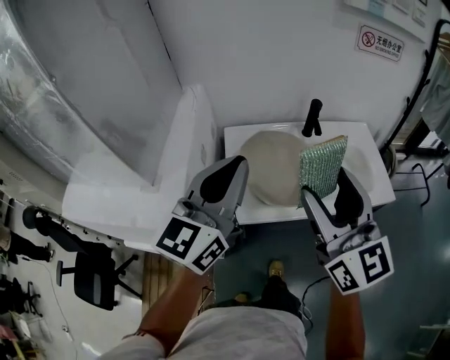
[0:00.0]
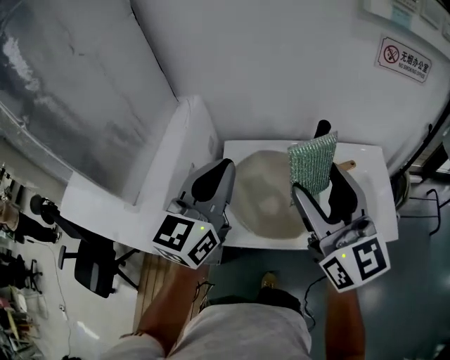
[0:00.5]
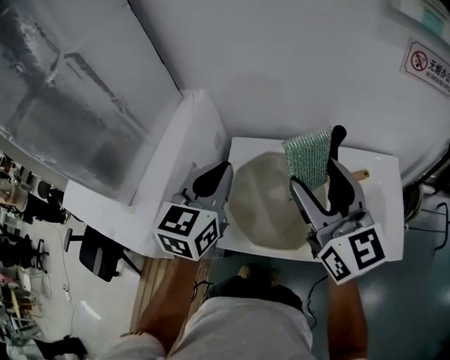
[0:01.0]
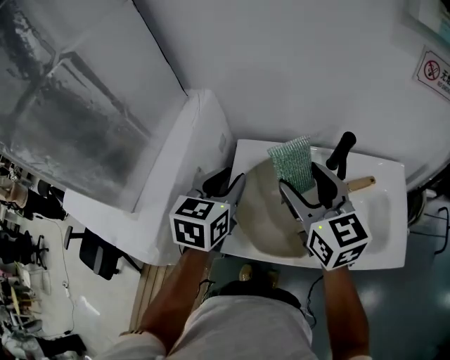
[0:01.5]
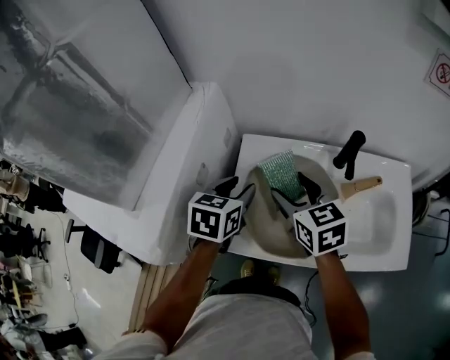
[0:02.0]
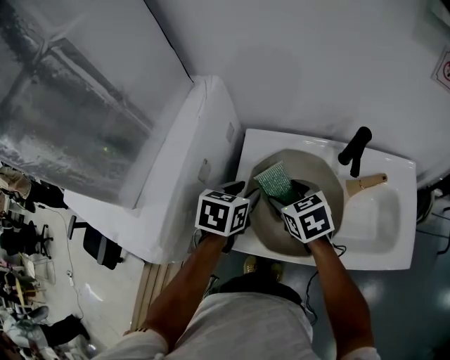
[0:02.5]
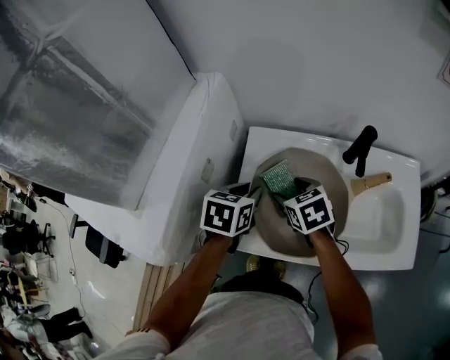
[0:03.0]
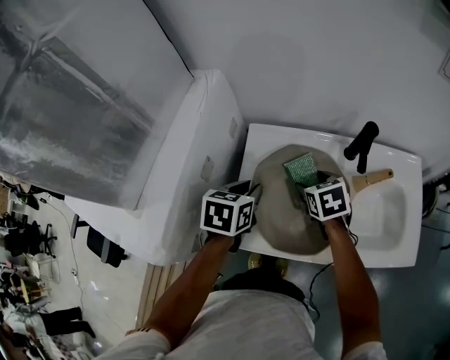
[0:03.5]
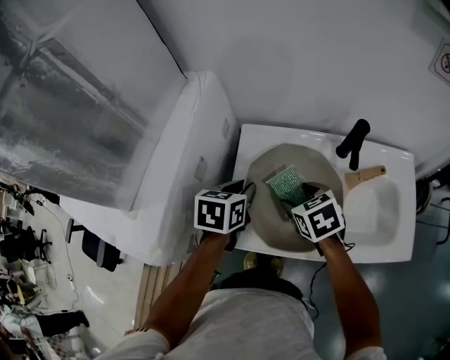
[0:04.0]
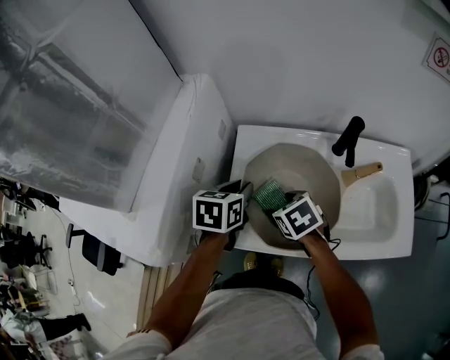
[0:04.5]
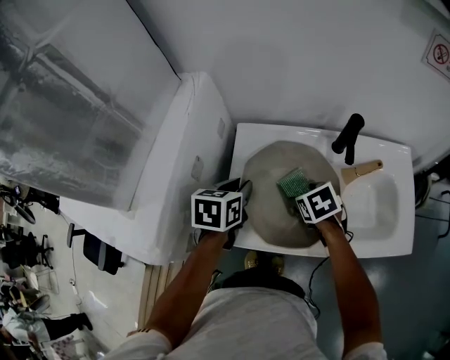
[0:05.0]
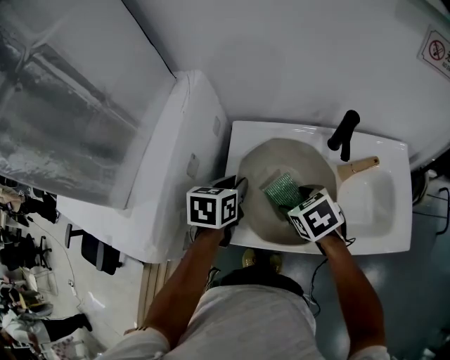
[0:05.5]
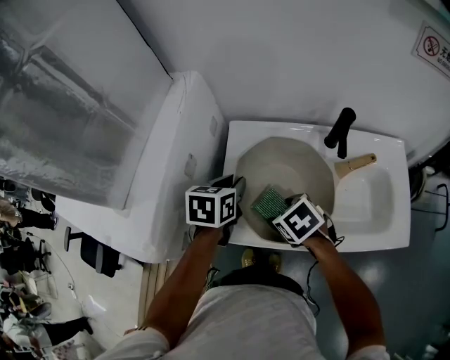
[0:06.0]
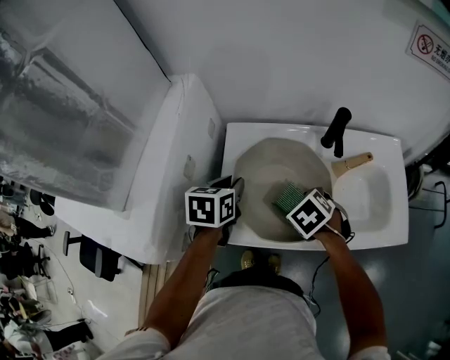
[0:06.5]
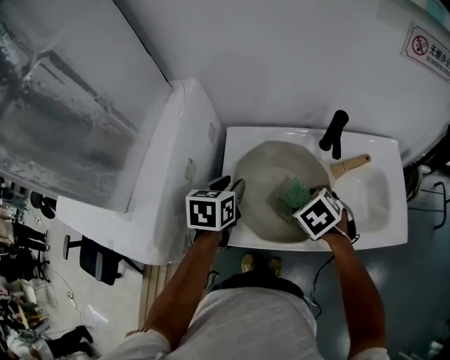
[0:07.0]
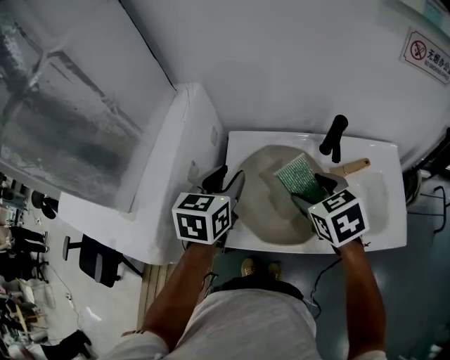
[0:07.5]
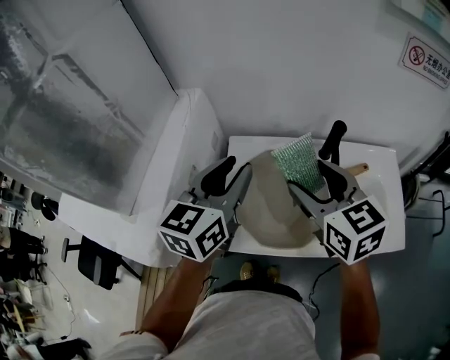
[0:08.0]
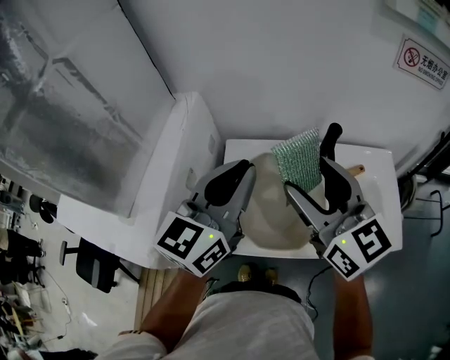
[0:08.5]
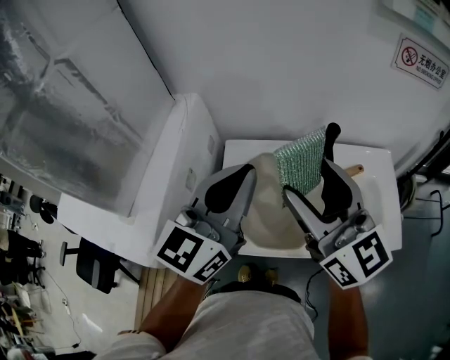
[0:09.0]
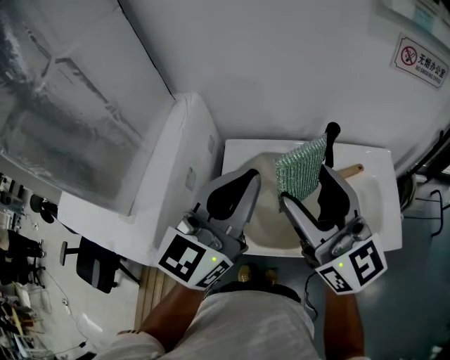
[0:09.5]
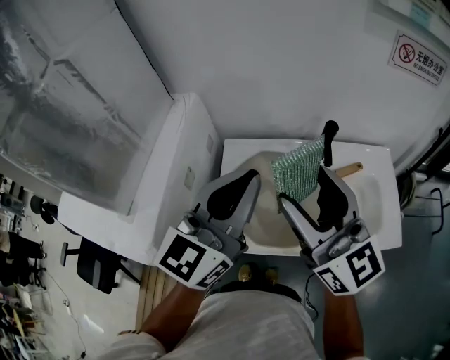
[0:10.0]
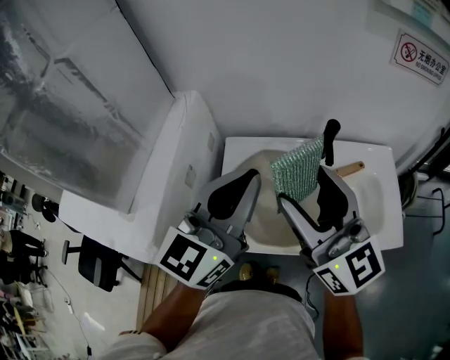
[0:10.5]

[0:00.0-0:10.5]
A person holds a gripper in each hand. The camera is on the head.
0:00.0 to 0:02.0: The right gripper shifts roughly 30 cm forward and downward, and points its fingers roughly 40 degrees further downward; the left gripper heads downward and forward, covering approximately 30 cm, points its fingers approximately 50 degrees further downward, and opens up.
0:02.0 to 0:04.0: The left gripper travels downward by roughly 5 cm, and closes up. The right gripper moves downward, about 10 cm, and rotates about 30 degrees.
0:04.0 to 0:06.5: The right gripper goes left and right, some 10 cm each way, reversing 2 times, and changes its angle by approximately 20 degrees.
0:06.5 to 0:08.5: Both grippers travel together upward, roughly 25 cm. The left gripper angles its fingers upward, by approximately 40 degrees; the right gripper angles its fingers upward, by roughly 70 degrees.
0:08.5 to 0:10.5: There are only small adjustments of the grippers.

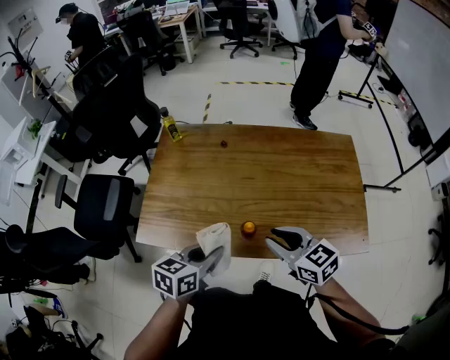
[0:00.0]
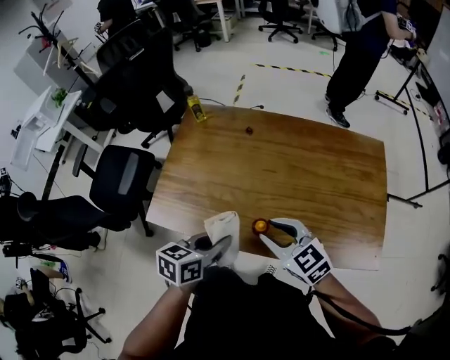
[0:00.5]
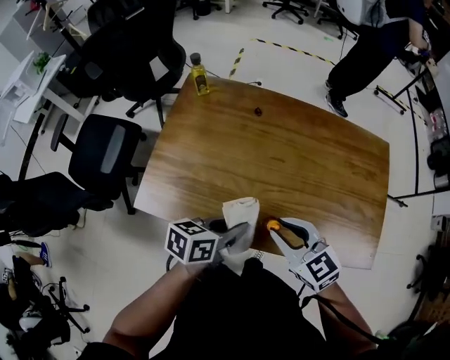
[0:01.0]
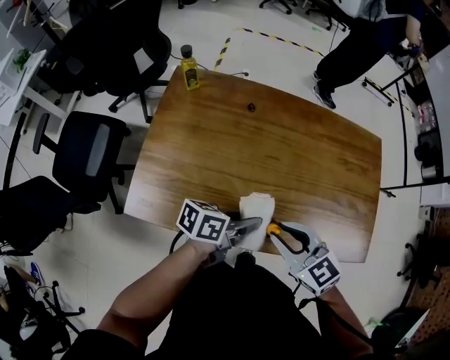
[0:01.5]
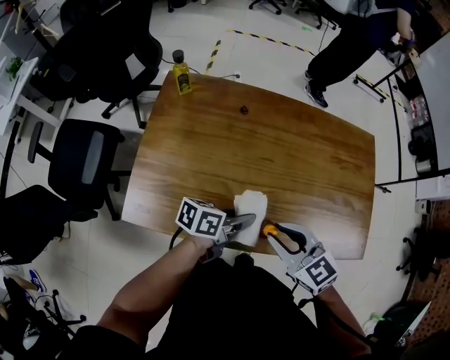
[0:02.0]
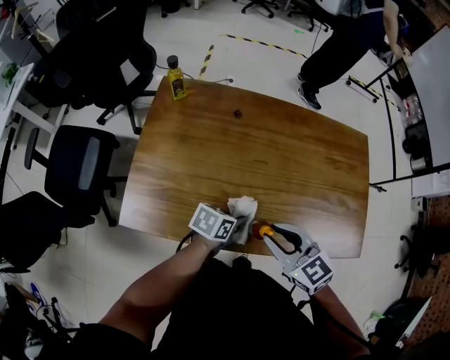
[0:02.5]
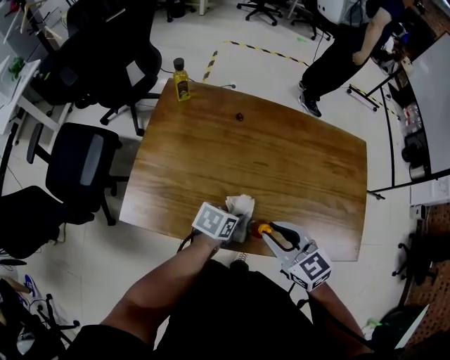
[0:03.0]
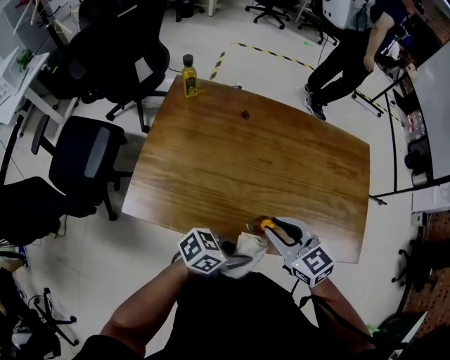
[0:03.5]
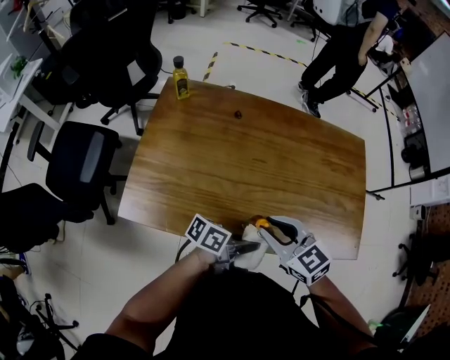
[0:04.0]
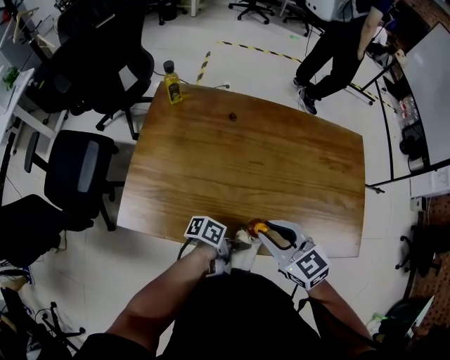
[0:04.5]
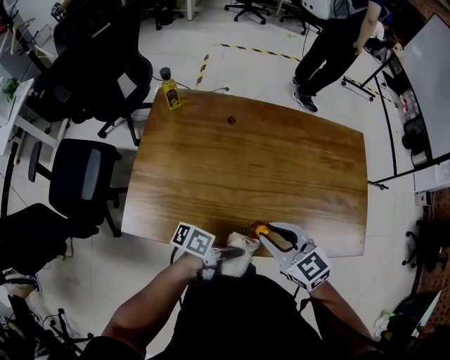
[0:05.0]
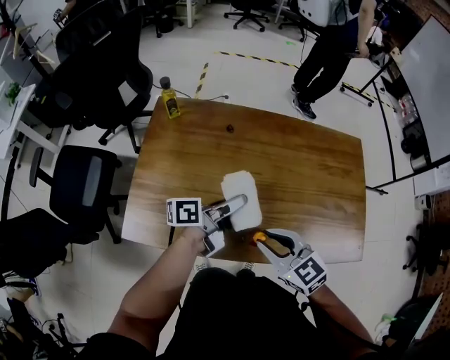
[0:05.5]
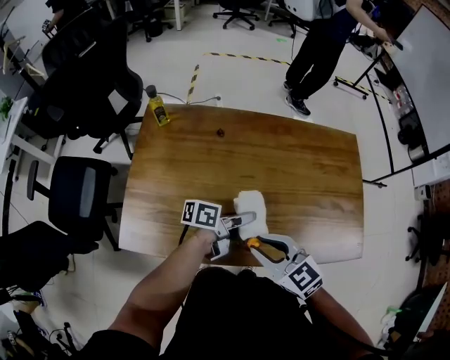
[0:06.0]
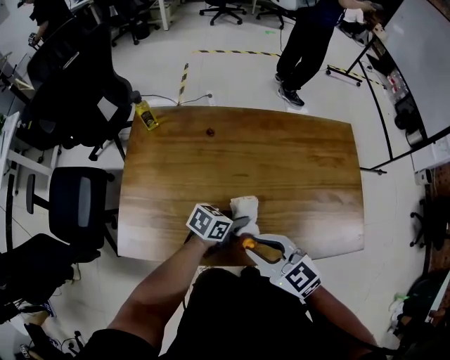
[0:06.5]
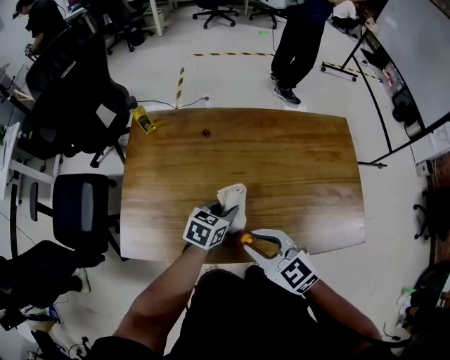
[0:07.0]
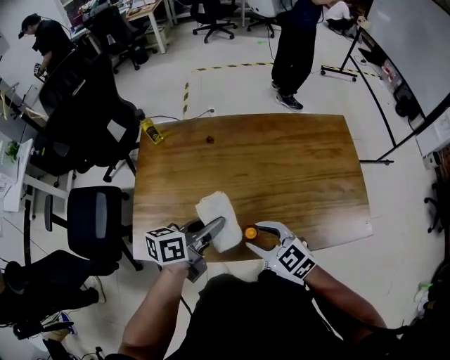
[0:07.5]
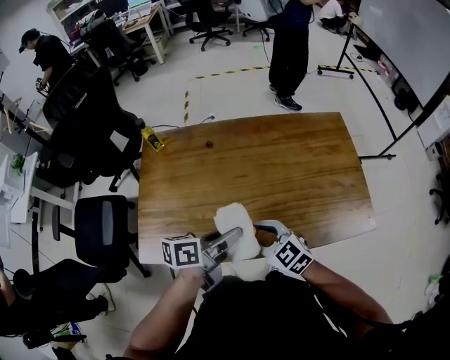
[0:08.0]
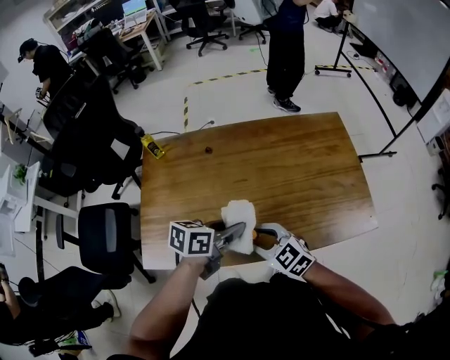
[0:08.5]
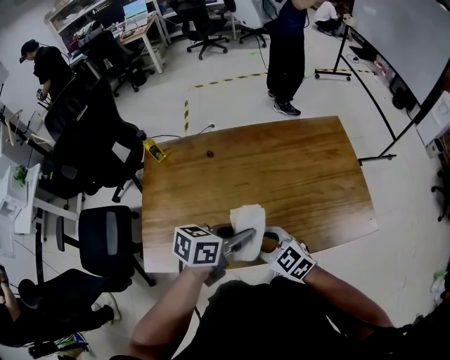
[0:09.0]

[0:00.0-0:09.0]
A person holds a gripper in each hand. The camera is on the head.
0:00.0 to 0:02.0: The right gripper ends up some 5 cm from where it was, while the left gripper moves forward, downward and to the right, roughly 15 cm, and changes its angle by approximately 30 degrees.
0:02.0 to 0:04.5: The left gripper moves up and down over about 10 cm, changing direction 2 times, and changes its angle by some 30 degrees.
0:04.5 to 0:07.0: The left gripper moves approximately 15 cm upward and comes back, and rolls clockwise, seen from behind, by about 60 degrees.
0:07.0 to 0:09.0: The left gripper shifts approximately 15 cm upward and backward, and swivels approximately 20 degrees.

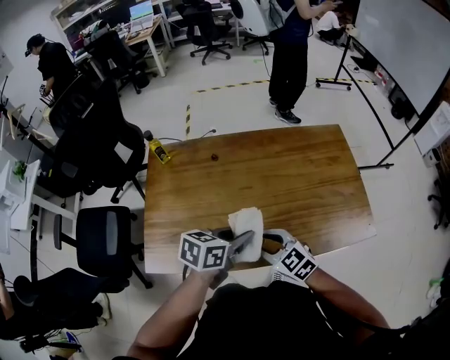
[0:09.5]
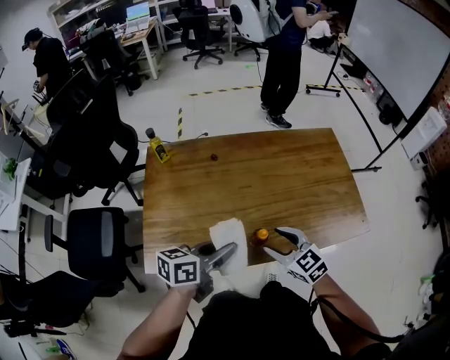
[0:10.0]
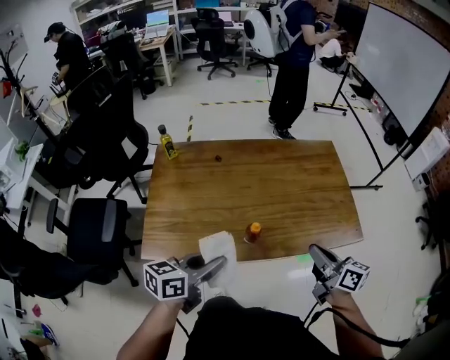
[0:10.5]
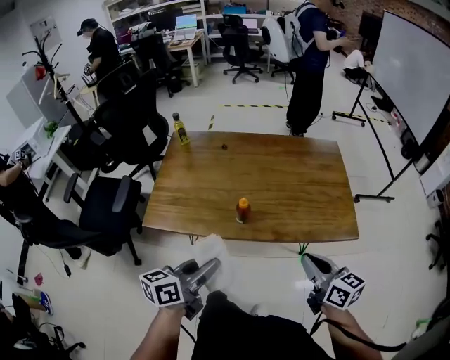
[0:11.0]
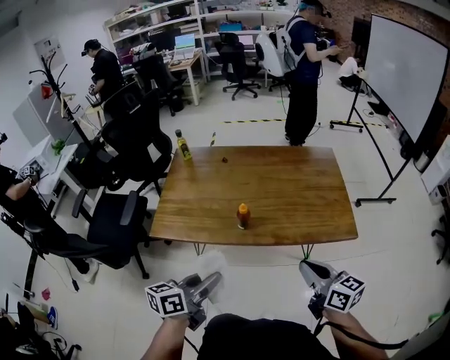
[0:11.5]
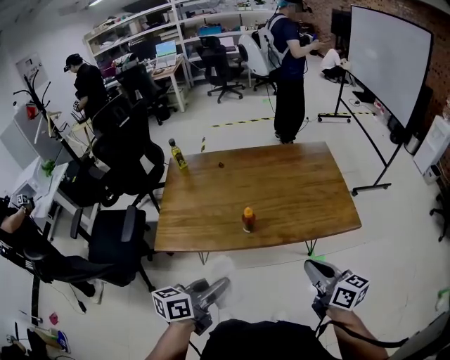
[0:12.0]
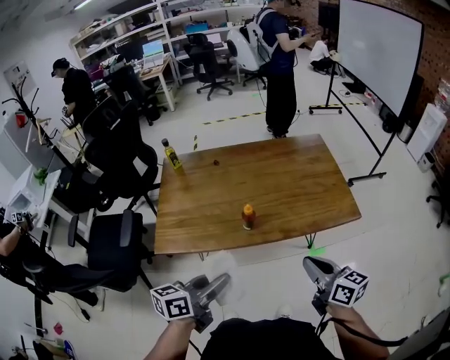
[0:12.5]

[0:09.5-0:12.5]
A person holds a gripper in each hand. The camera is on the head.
0:09.5 to 0:11.0: The right gripper shifts roughly 30 cm to the right, backward and upward, rotates roughly 40 degrees, and closes its fingers, while the left gripper travels backward by roughly 25 cm, and swivels roughly 30 degrees.
0:11.0 to 0:12.5: The right gripper moves some 5 cm.

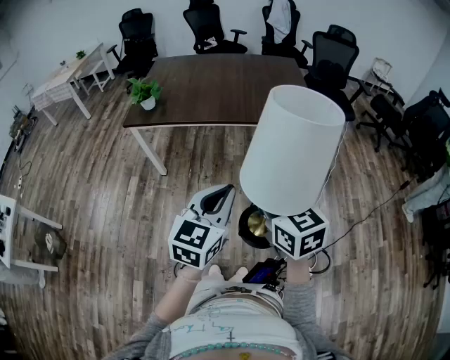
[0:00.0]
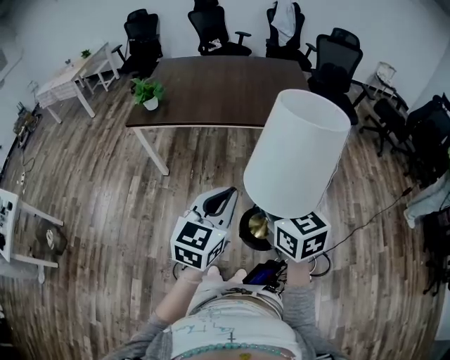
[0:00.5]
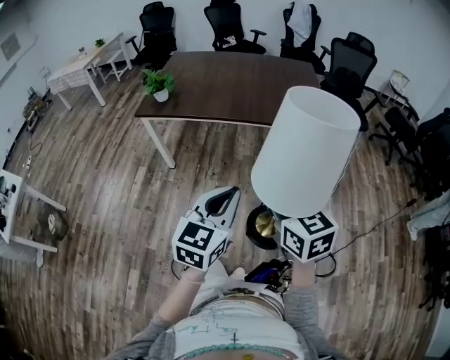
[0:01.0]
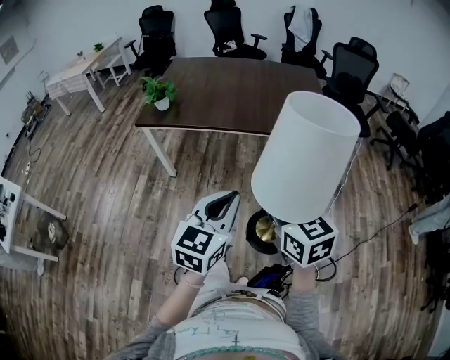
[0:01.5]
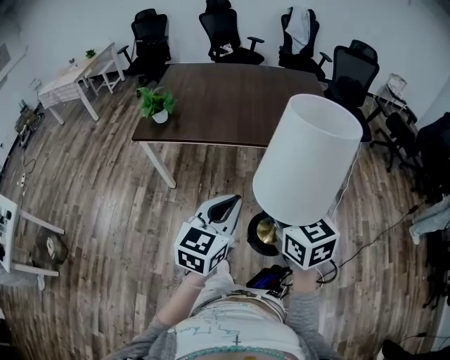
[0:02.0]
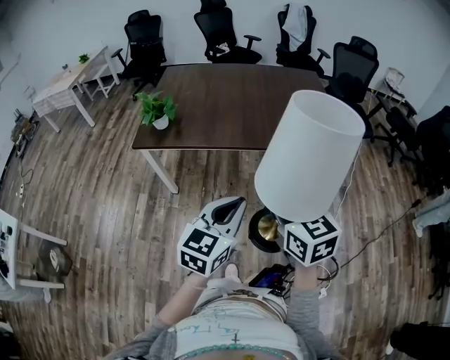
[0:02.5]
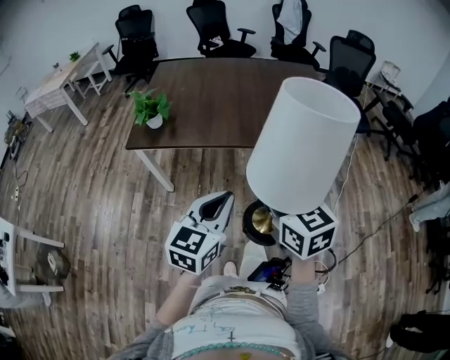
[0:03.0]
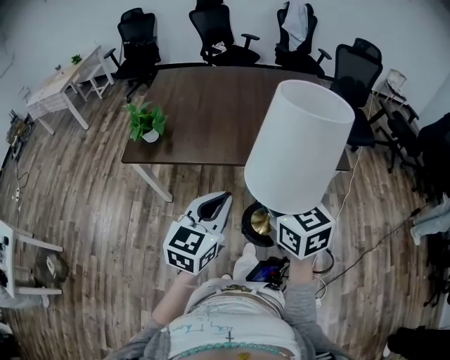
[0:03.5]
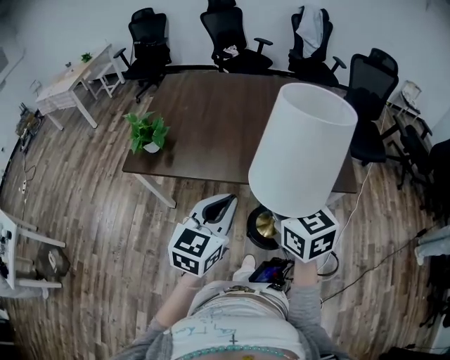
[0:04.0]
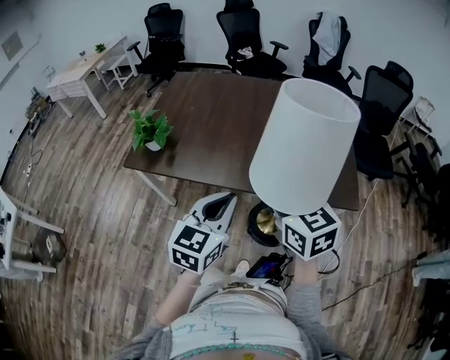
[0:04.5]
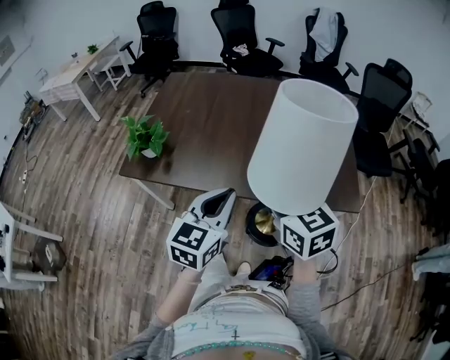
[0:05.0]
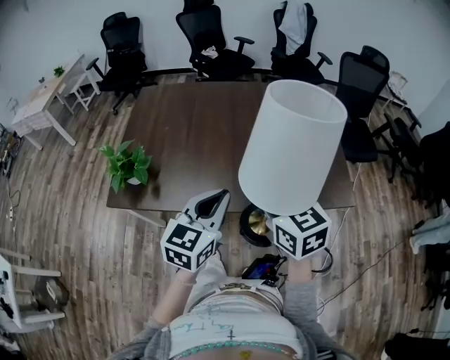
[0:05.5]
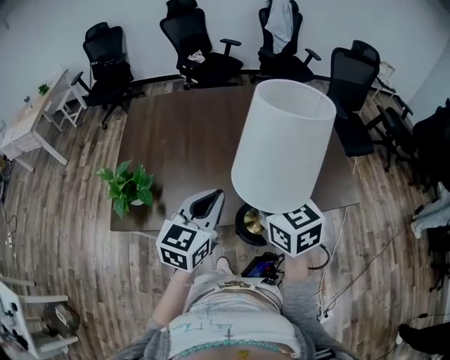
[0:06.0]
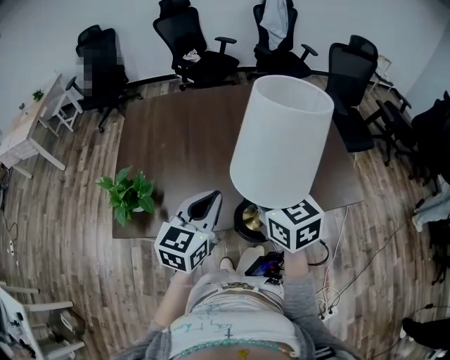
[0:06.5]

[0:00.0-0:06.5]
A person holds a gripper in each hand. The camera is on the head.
0:00.0 to 0:02.0: Both grippers move forward, approximately 10 cm.
0:02.0 to 0:04.5: The grippers both shift forward by about 30 cm.
0:04.5 to 0:06.5: The grippers both shift forward and to the left by some 20 cm.
